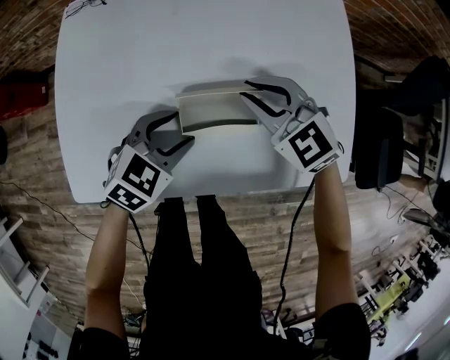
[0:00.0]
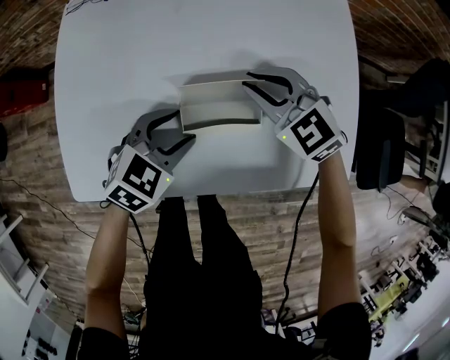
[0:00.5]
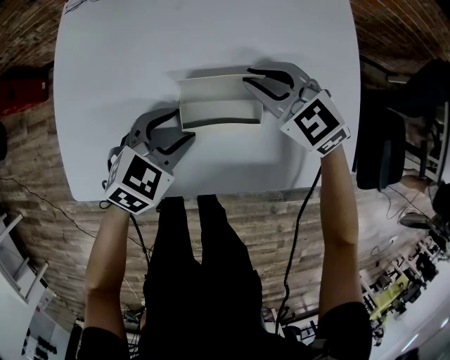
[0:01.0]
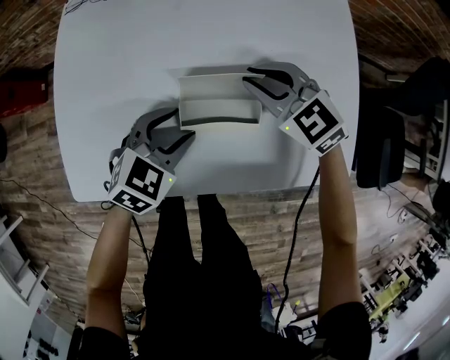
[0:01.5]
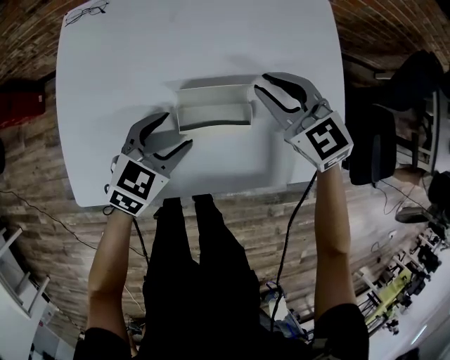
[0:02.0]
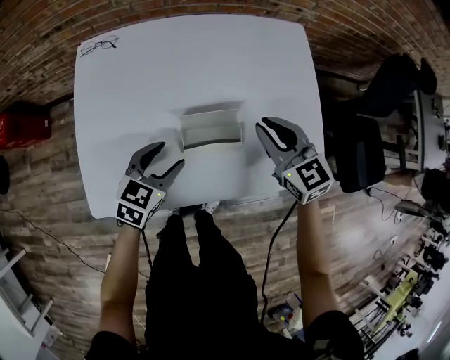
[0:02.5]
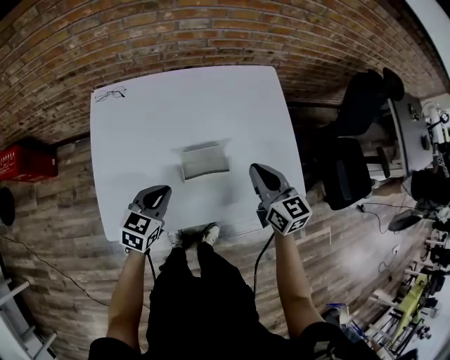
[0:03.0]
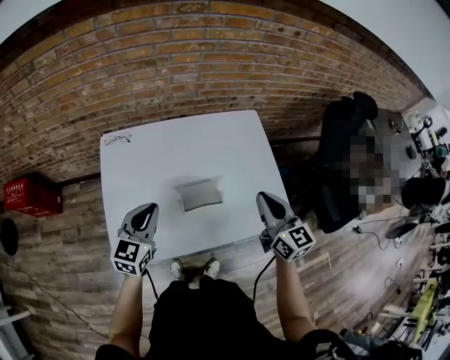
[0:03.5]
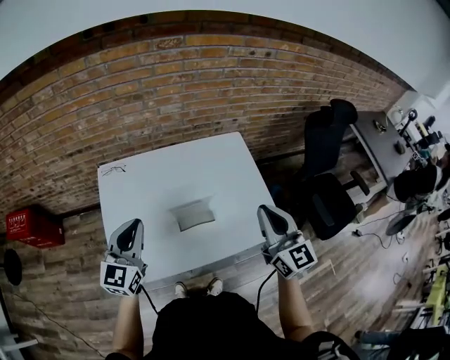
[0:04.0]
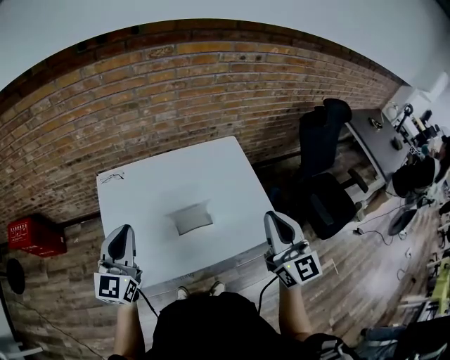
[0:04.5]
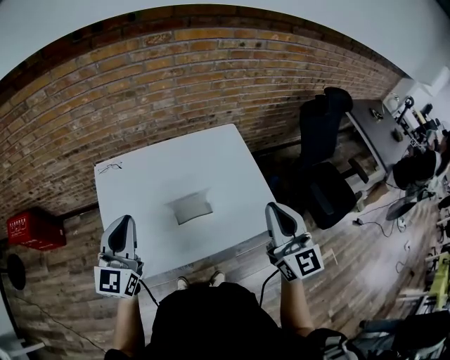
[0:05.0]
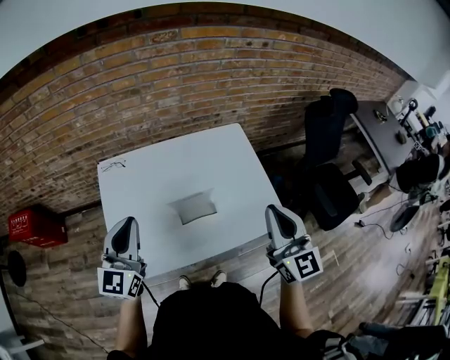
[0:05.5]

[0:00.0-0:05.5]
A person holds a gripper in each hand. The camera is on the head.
0:00.0 to 0:02.0: The right gripper moves roughly 5 cm.
0:02.0 to 0:03.5: The left gripper is displaced upward by some 20 cm, swivels some 30 degrees, and closes. Meanwhile the right gripper goes roughly 25 cm upward, backward and to the right, and swivels some 50 degrees.
0:03.5 to 0:05.5: The left gripper travels upward by about 15 cm, and rotates about 20 degrees. The right gripper is displaced upward and backward by about 15 cm, and changes its angle by approximately 20 degrees.

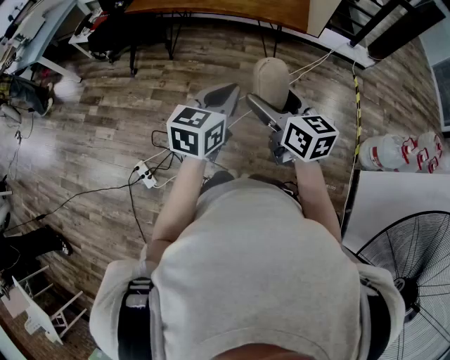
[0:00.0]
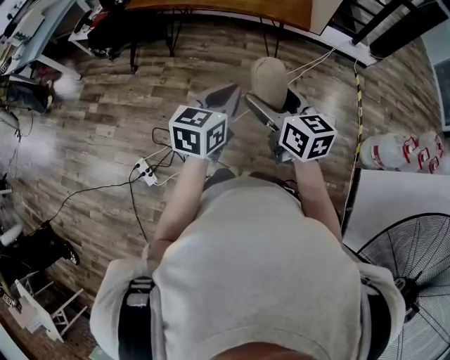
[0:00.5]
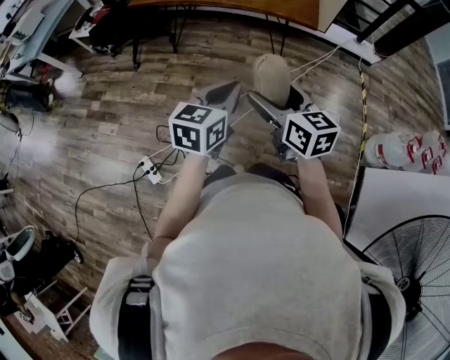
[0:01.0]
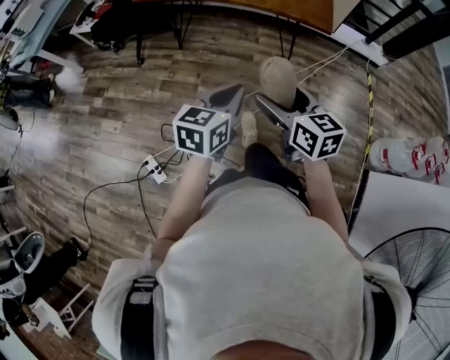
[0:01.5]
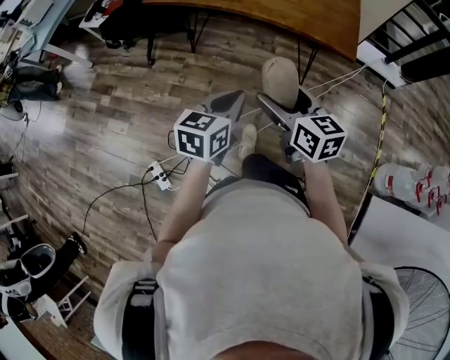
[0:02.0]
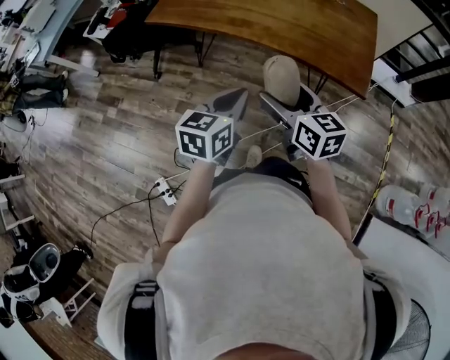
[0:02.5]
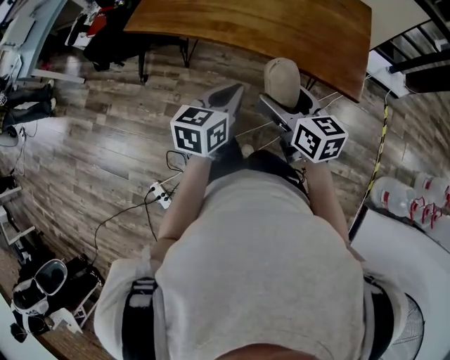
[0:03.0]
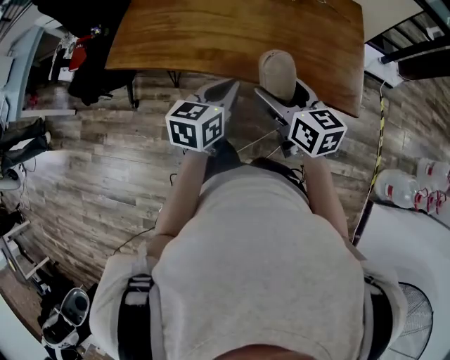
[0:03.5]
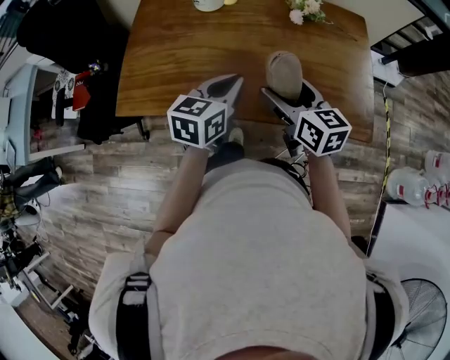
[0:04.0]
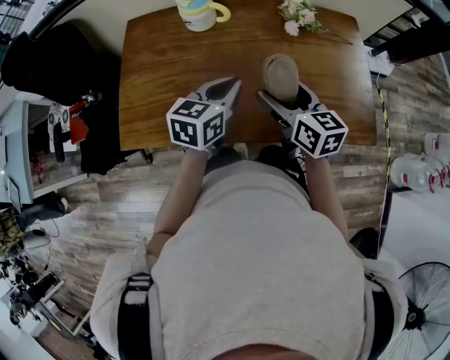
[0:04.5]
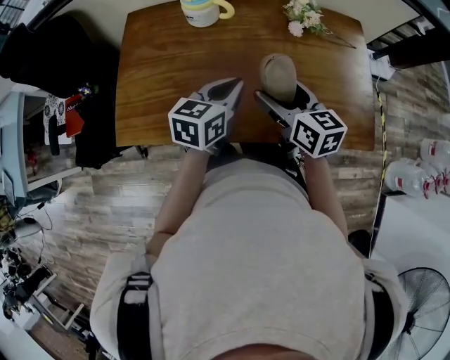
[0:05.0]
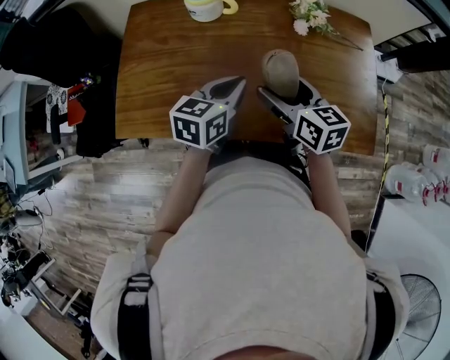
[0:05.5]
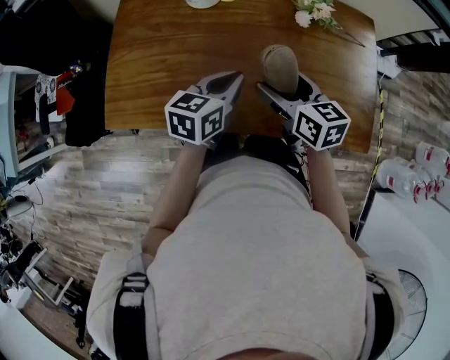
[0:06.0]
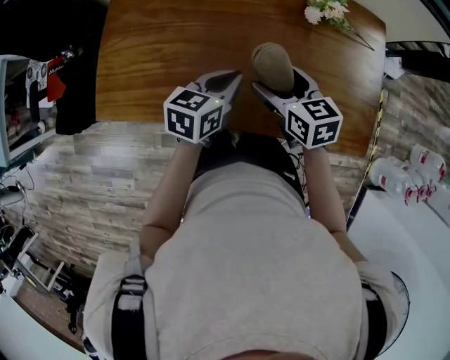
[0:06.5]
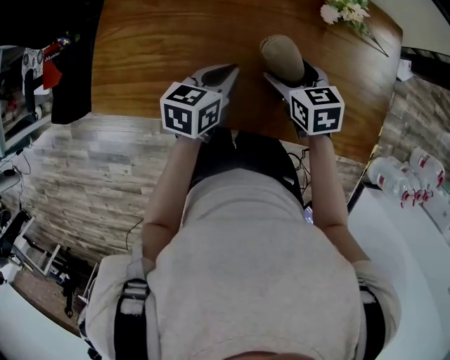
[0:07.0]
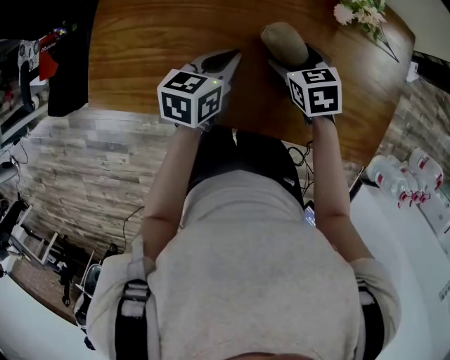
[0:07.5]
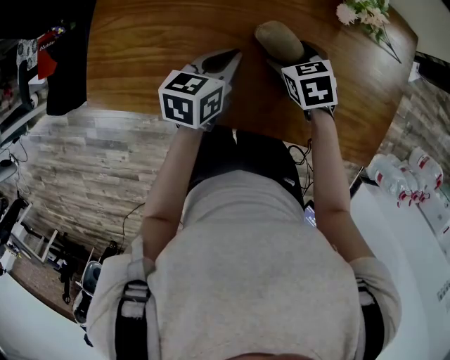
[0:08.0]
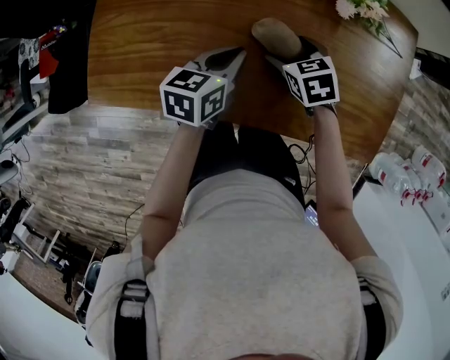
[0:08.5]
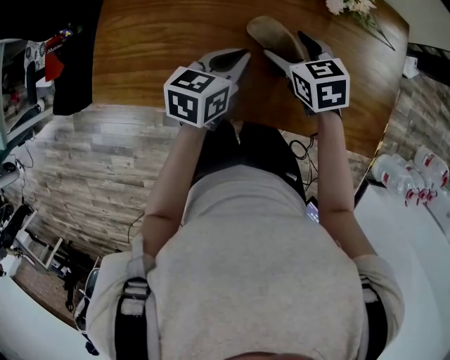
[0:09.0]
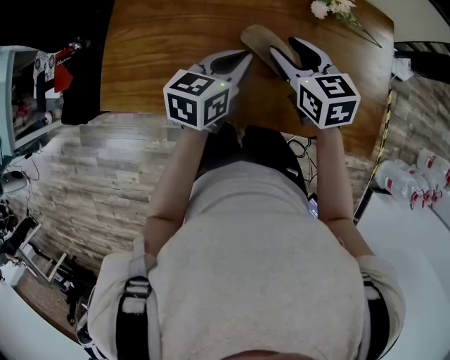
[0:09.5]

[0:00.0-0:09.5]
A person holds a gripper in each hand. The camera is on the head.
0:00.0 to 0:02.0: The right gripper heads forward and to the left, covering approximately 20 cm, while the left gripper heads forward, to the left and downward, covering some 20 cm.
0:02.0 to 0:04.0: The pair of grippers is taken forward, about 50 cm.
0:04.0 to 0:05.5: The grippers both shift forward by about 10 cm.
0:05.5 to 0:07.5: Both grippers travel together downward and forward, roughly 15 cm. The right gripper tips its fingers downward by about 30 degrees.
0:07.5 to 0:09.5: The left gripper travels upward by about 10 cm. The right gripper travels upward by some 15 cm, turns by some 30 degrees, and closes its fingers.

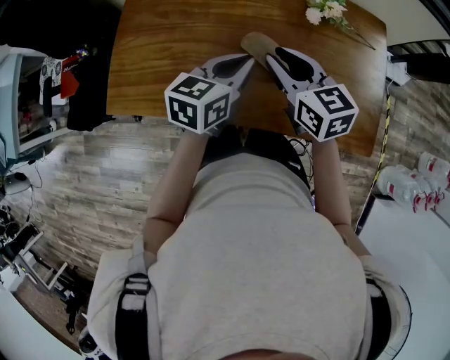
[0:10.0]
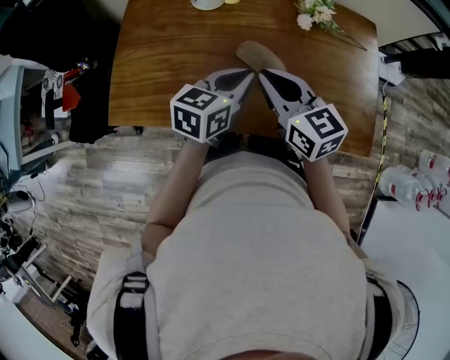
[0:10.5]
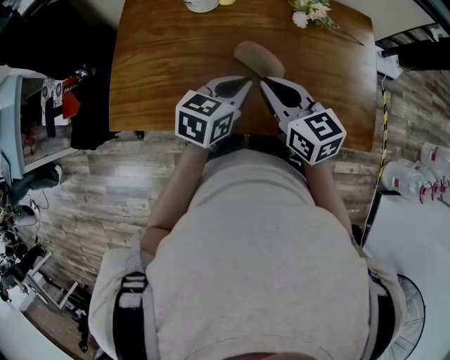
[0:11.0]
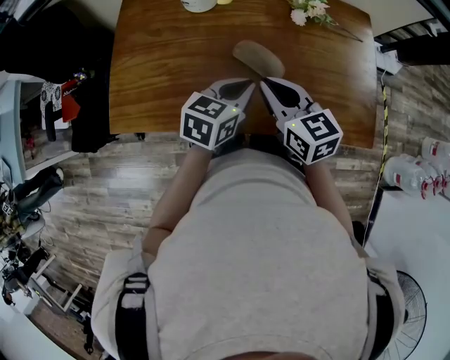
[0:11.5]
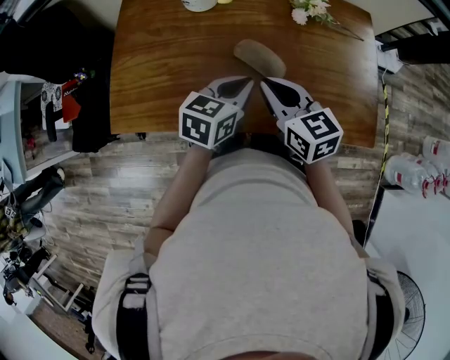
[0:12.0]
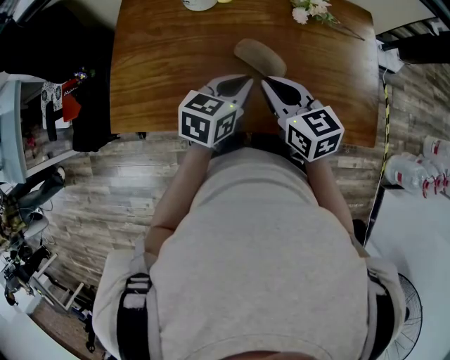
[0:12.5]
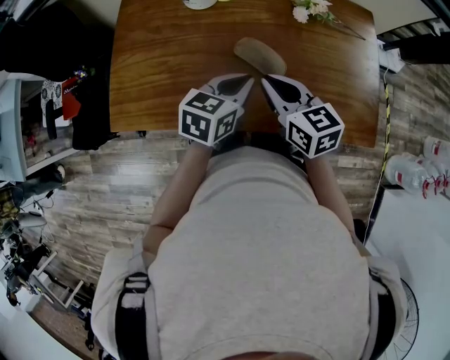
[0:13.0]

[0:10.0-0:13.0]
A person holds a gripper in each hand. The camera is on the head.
0:10.0 to 0:11.5: The right gripper shifts by about 5 cm; the left gripper moves approximately 5 cm.
0:11.5 to 0:13.0: The grippers make only small movements.

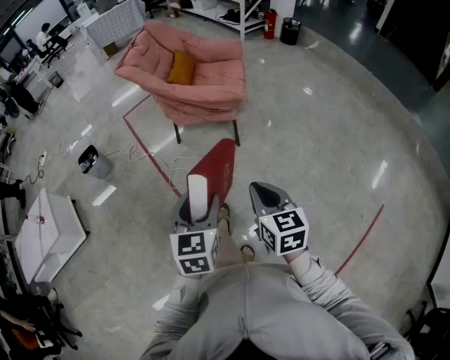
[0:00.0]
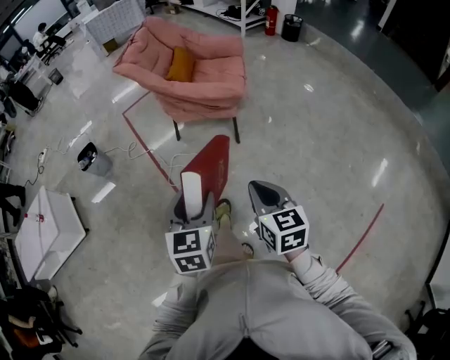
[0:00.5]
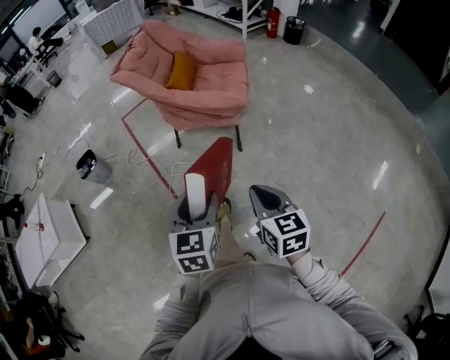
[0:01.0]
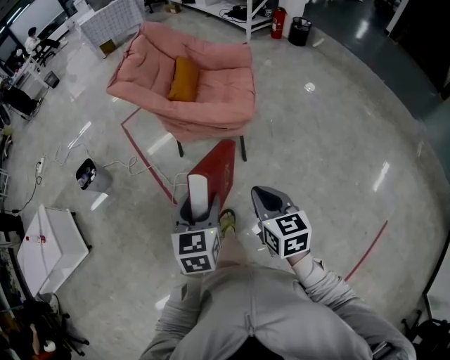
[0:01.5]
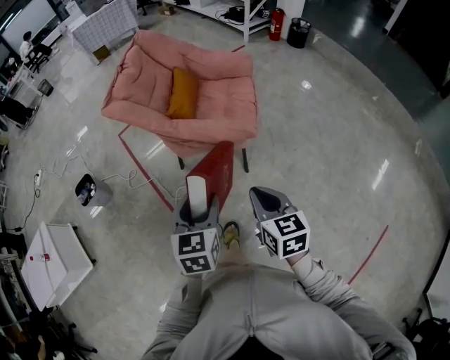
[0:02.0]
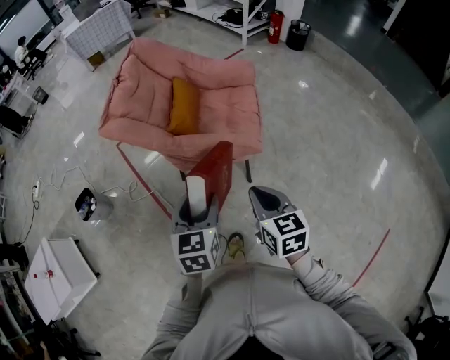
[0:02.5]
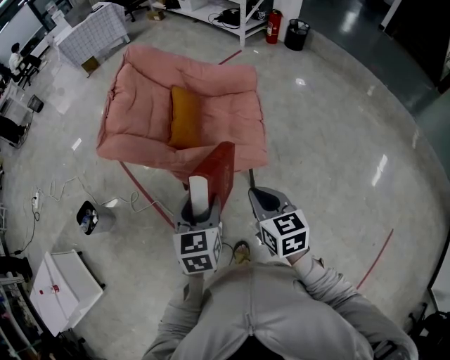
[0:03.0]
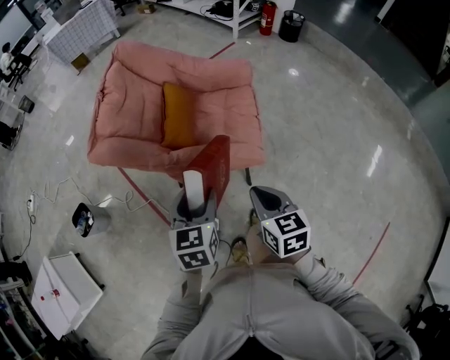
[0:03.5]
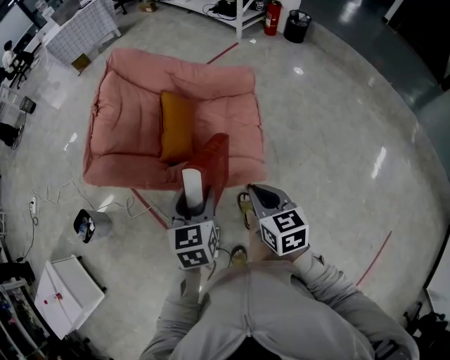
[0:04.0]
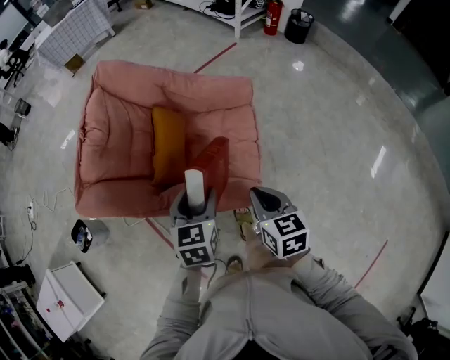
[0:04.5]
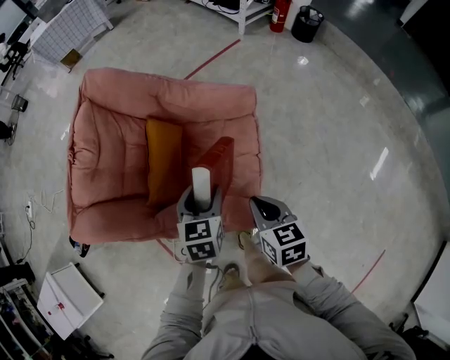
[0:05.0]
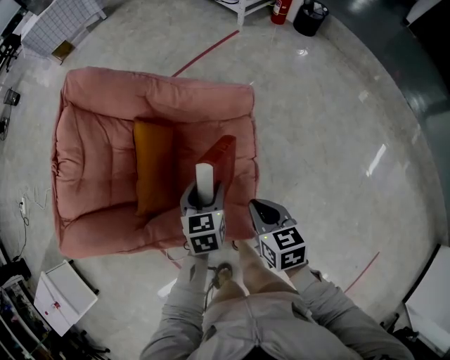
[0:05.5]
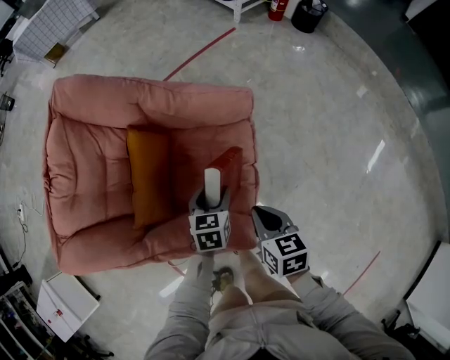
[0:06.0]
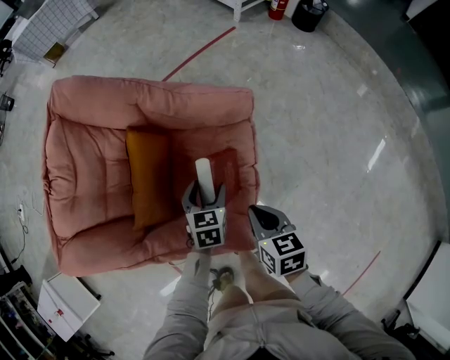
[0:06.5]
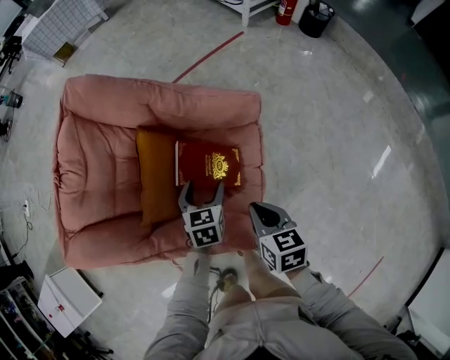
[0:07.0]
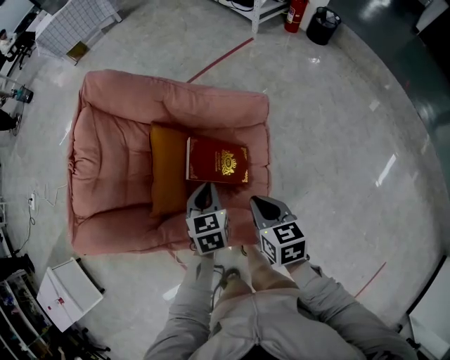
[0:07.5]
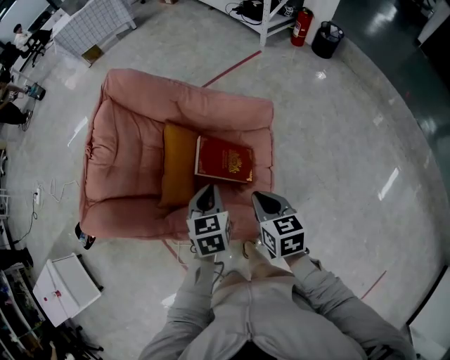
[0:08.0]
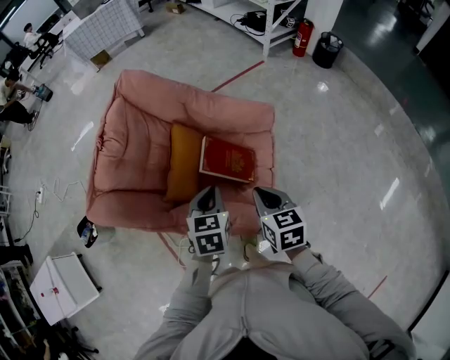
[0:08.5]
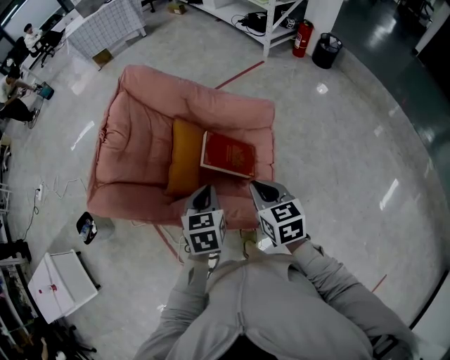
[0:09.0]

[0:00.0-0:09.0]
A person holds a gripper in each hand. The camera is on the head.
0:00.0 to 0:02.0: Both grippers travel together forward, roughly 30 cm.
0:02.0 to 0:04.5: Both grippers move forward, approximately 35 cm.
0:04.5 to 0:07.0: The right gripper is displaced forward and downward by some 15 cm. The left gripper heads forward, downward and to the right, covering about 25 cm.
0:07.0 to 0:09.0: The right gripper heads upward and to the left, covering approximately 10 cm. Meanwhile the left gripper heads upward, backward and to the left, covering some 20 cm, and closes up.
